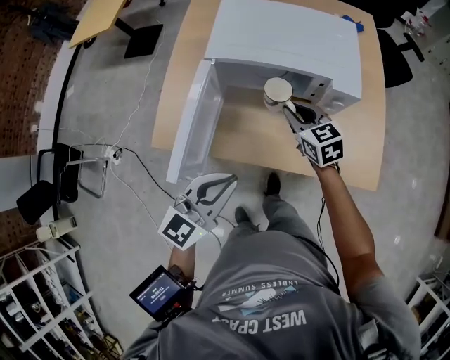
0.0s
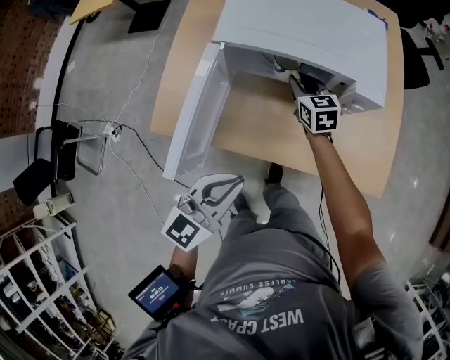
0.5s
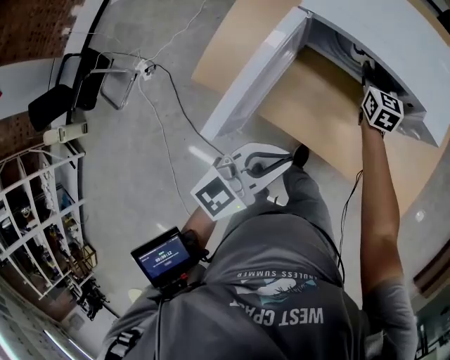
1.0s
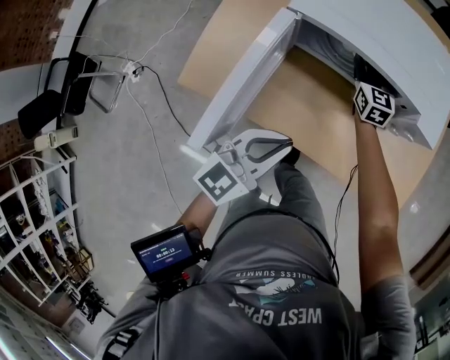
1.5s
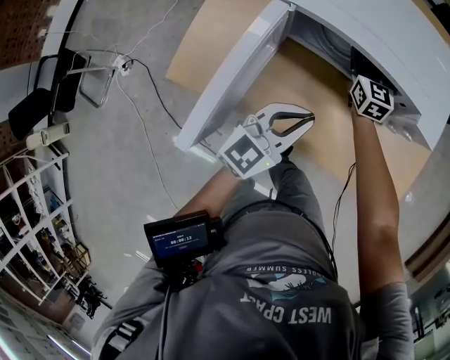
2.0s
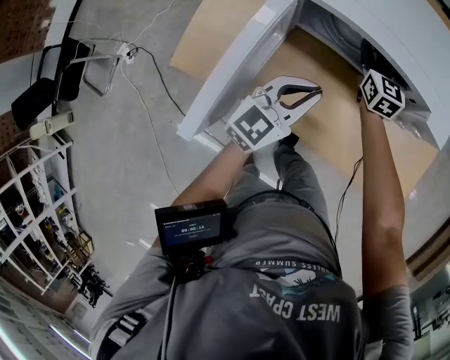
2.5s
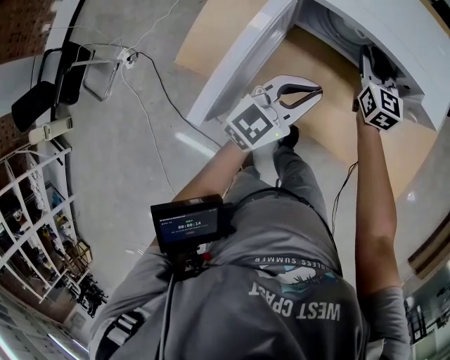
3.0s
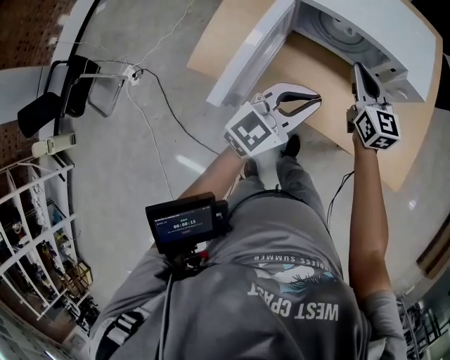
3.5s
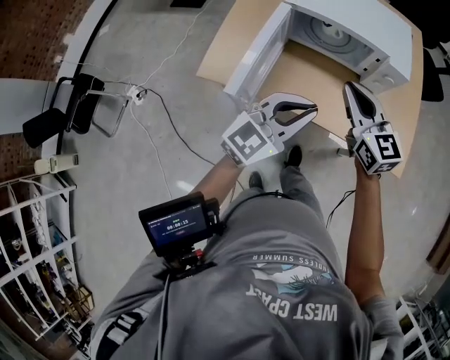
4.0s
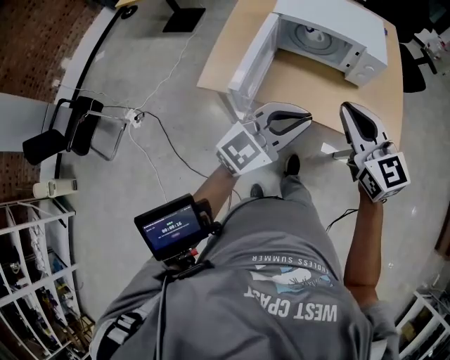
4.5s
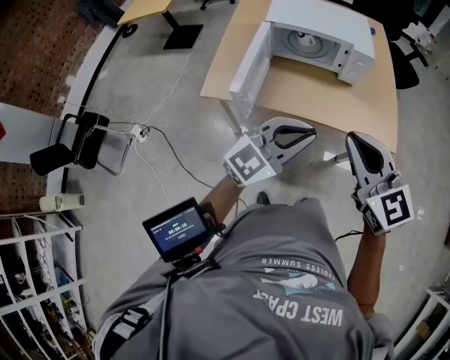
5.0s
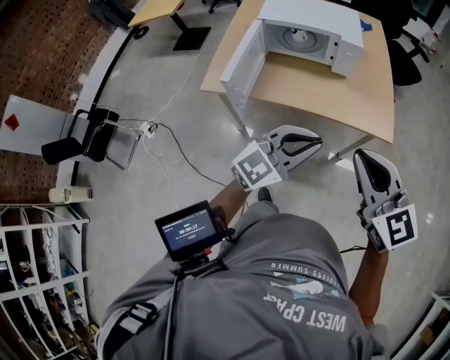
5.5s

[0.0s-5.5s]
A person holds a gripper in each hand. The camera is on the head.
0.0s to 2.0s: Both grippers travel together forward and downward, about 20 cm.
2.0s to 3.5s: The right gripper moves backward and upward, about 25 cm, while the left gripper is displaced upward and backward by roughly 15 cm.
3.5s to 5.5s: The right gripper travels backward and upward by some 50 cm. Meanwhile the left gripper travels backward, upward and to the right by roughly 35 cm.

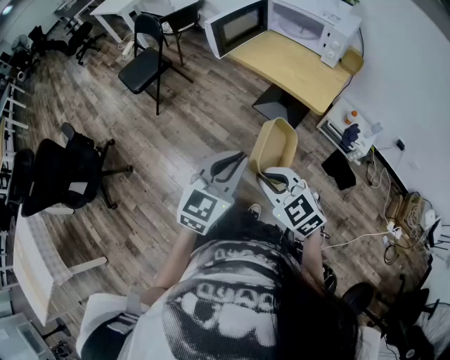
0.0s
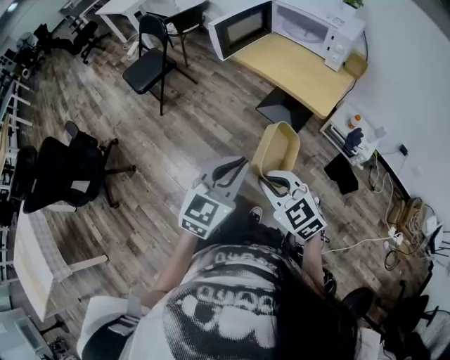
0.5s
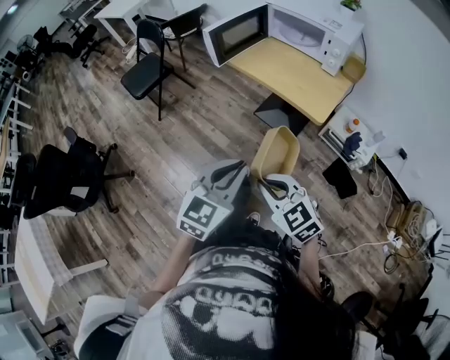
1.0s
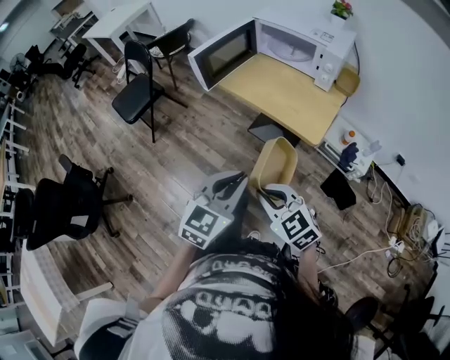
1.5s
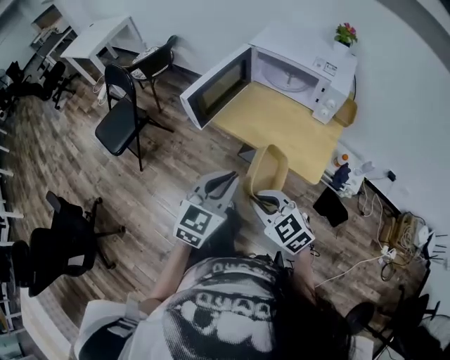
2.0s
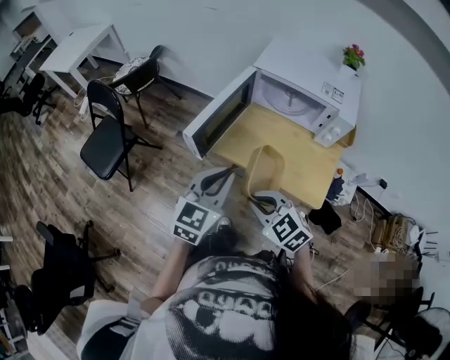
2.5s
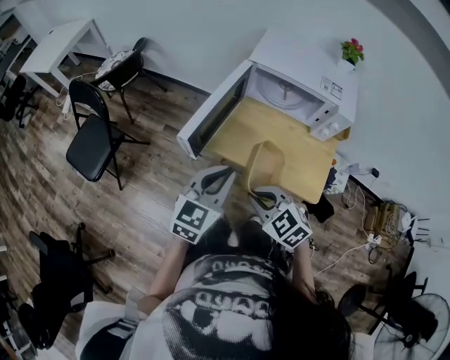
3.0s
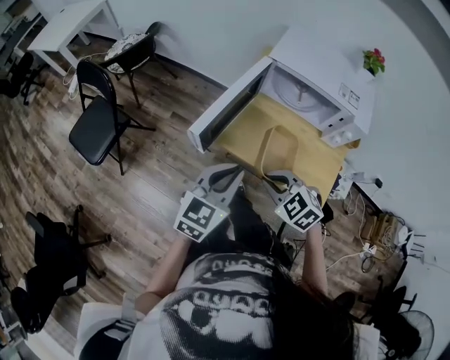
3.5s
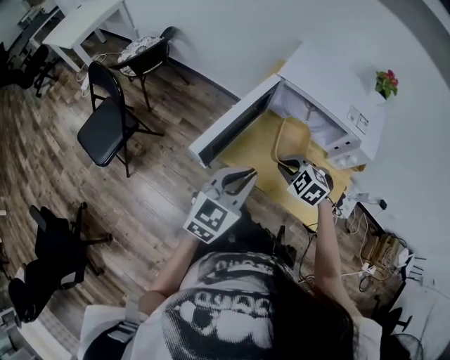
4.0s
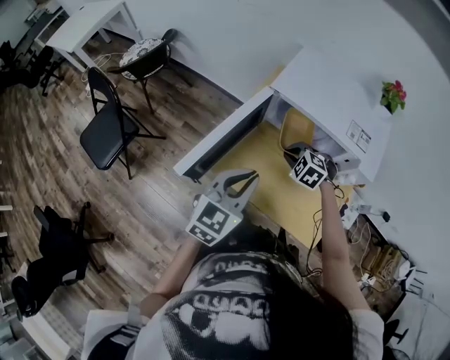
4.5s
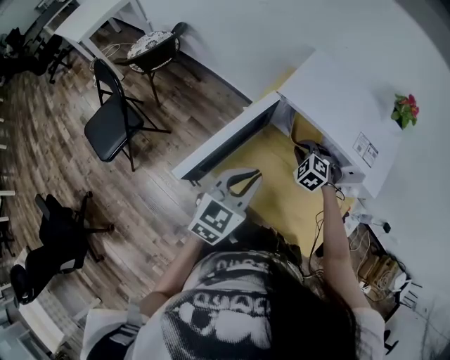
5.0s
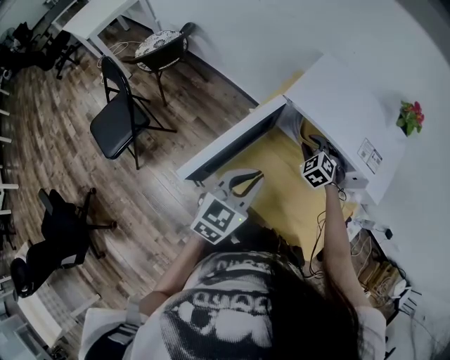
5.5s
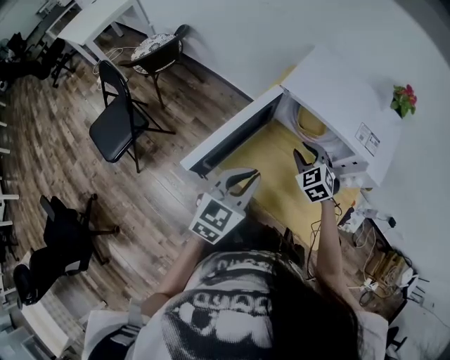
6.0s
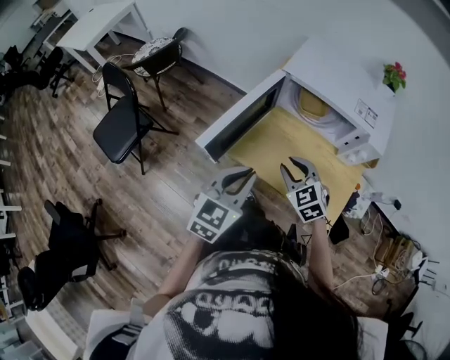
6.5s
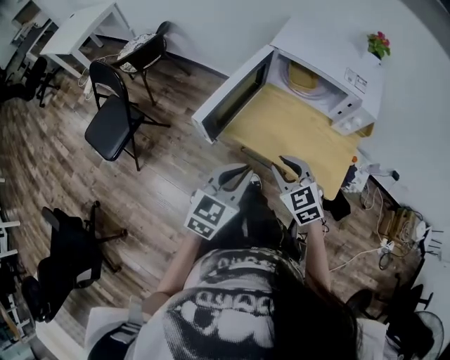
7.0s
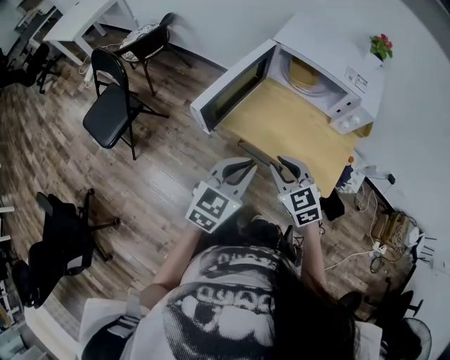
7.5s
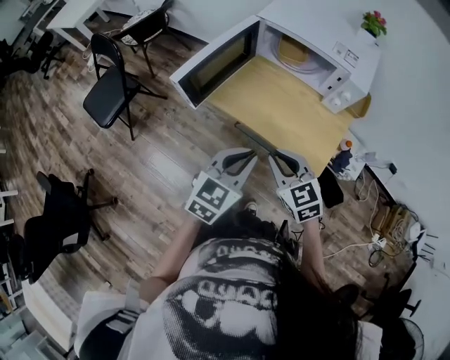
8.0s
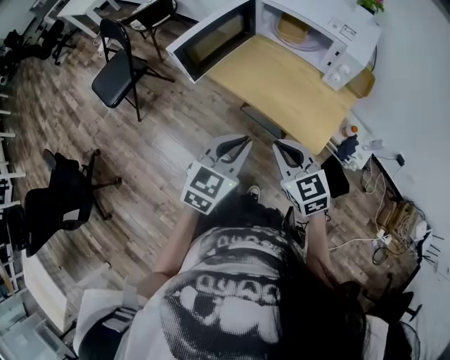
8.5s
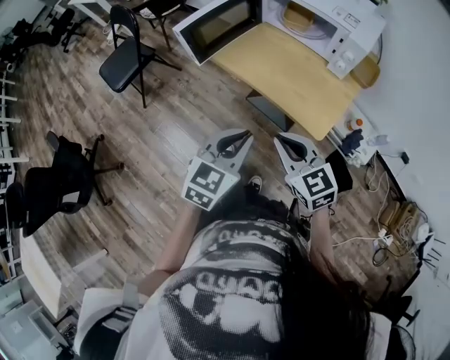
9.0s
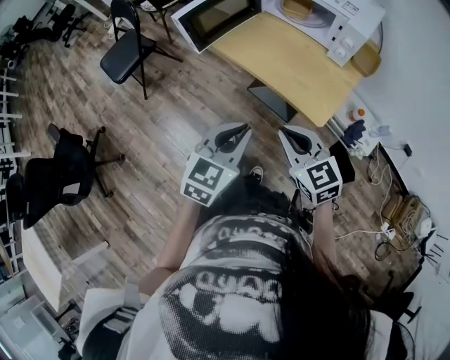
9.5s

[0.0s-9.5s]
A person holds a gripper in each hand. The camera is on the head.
0.0s to 2.0s: Both grippers move forward, approximately 30 cm.
2.0s to 4.0s: The grippers both shift forward by some 30 cm. The right gripper changes its angle by roughly 30 degrees.
4.0s to 5.5s: The right gripper moves forward, approximately 20 cm, and opens; the left gripper is displaced forward by approximately 10 cm.
5.5s to 7.5s: The right gripper heads backward, covering approximately 35 cm, and rotates roughly 40 degrees, while the left gripper shifts some 20 cm backward.
7.5s to 9.5s: Both grippers travel together backward and to the right, some 20 cm. The right gripper closes its fingers.

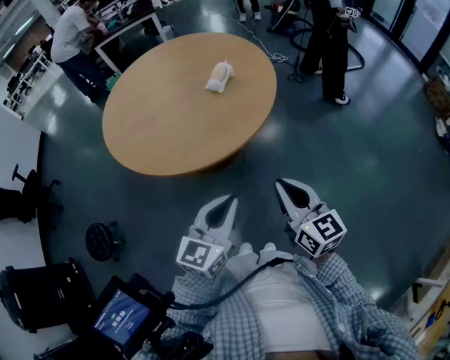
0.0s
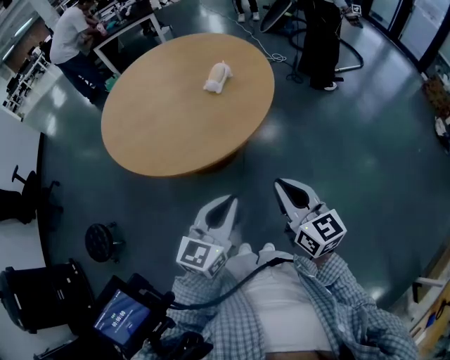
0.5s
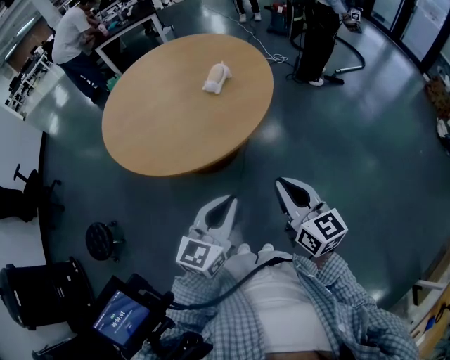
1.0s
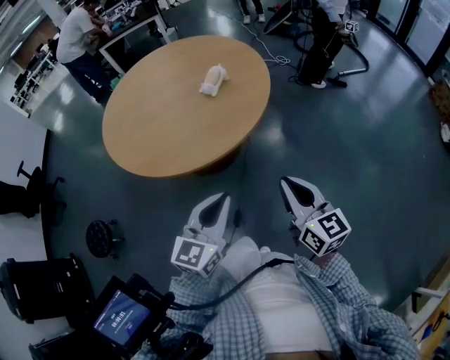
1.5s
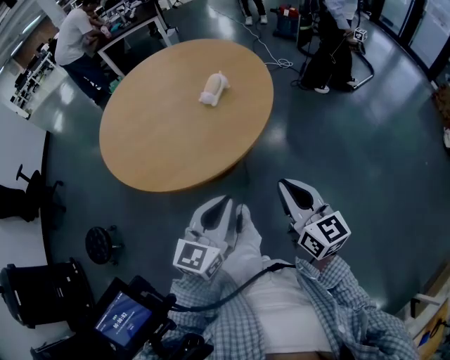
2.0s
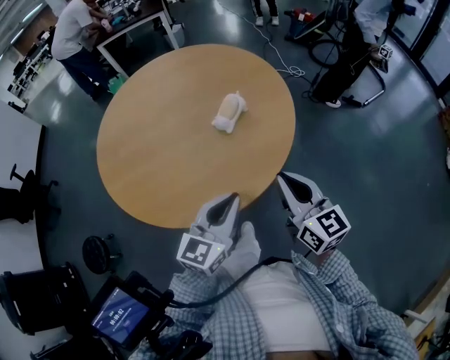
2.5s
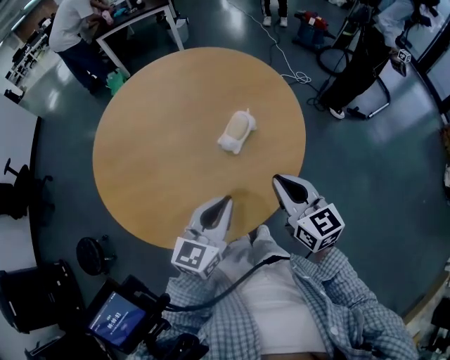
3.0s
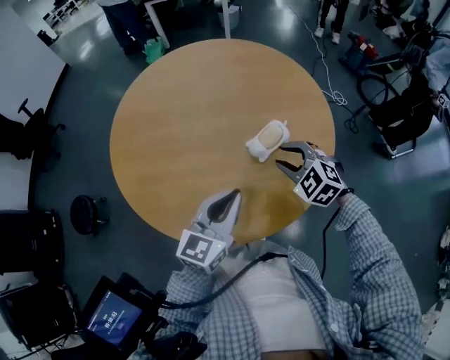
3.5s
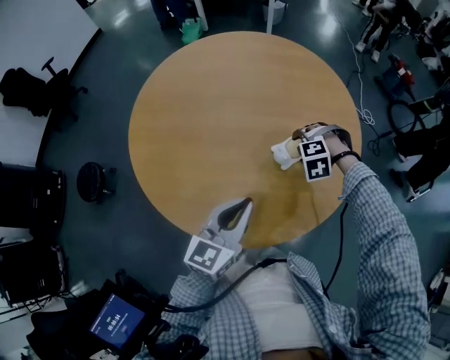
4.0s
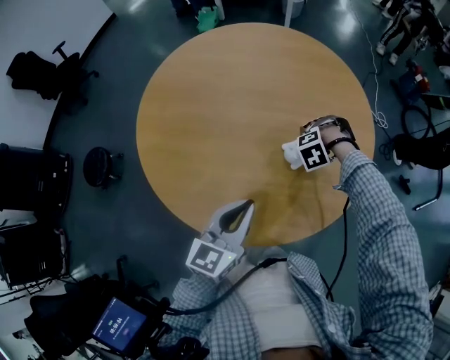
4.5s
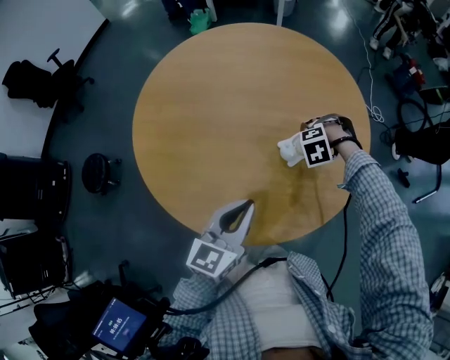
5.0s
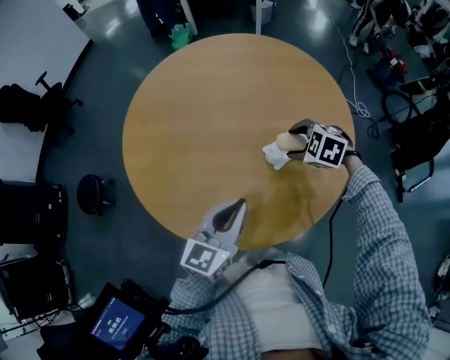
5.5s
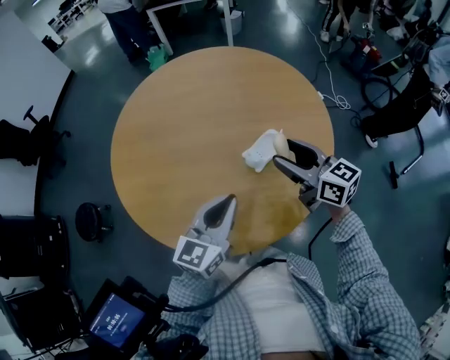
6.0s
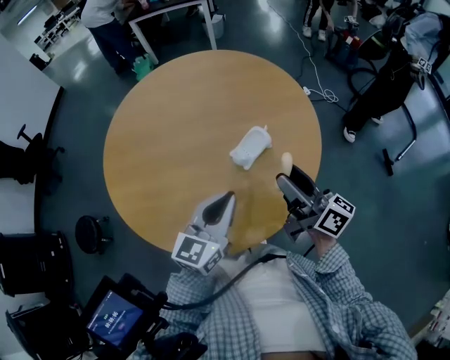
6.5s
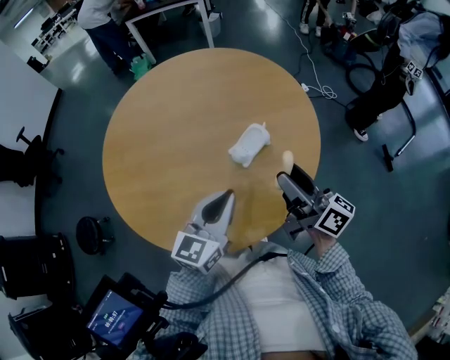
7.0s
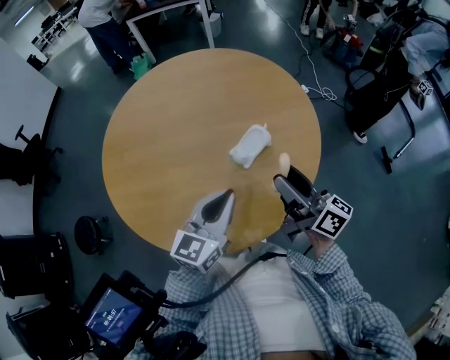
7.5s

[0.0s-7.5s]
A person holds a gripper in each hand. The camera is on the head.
0.0s to 2.0s: There are only small adjustments of the grippers.
2.0s to 4.0s: The right gripper moves some 50 cm, tips its fingers downward by roughly 70 degrees, and opens. The left gripper shifts by roughly 30 cm, and turns by some 30 degrees.
4.0s to 5.5s: The right gripper rotates some 40 degrees.
5.5s to 7.5s: The right gripper shifts approximately 20 cm upward and backward, and tilts its fingers roughly 70 degrees upward. The left gripper ends up about 5 cm from where it was.

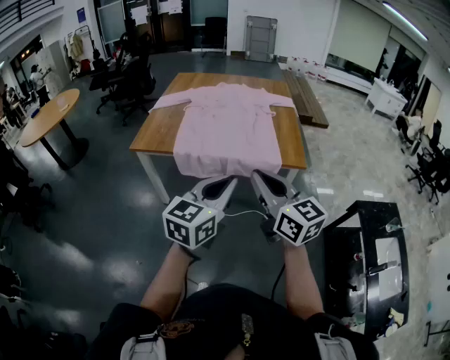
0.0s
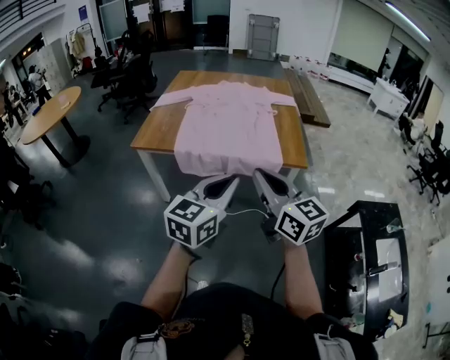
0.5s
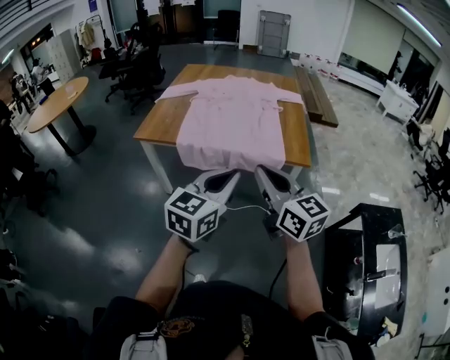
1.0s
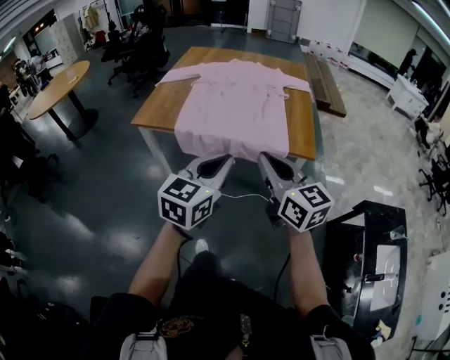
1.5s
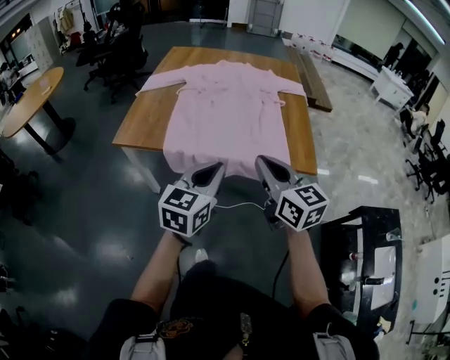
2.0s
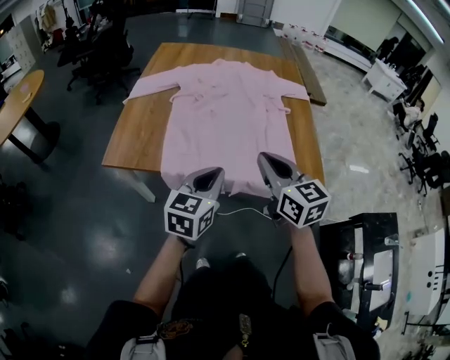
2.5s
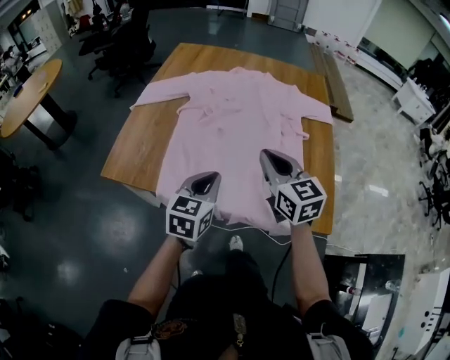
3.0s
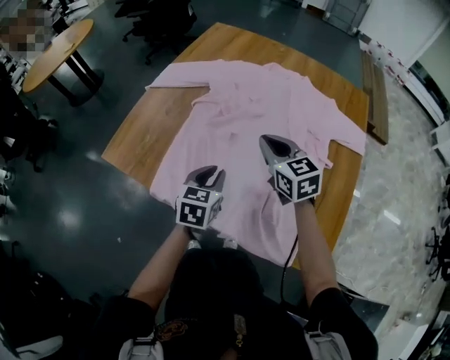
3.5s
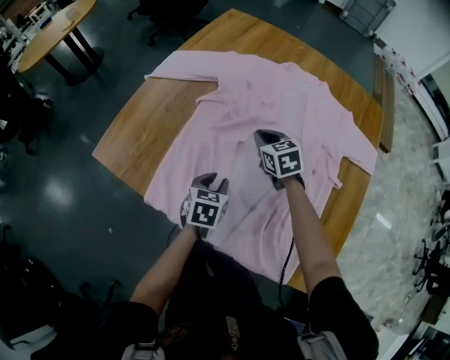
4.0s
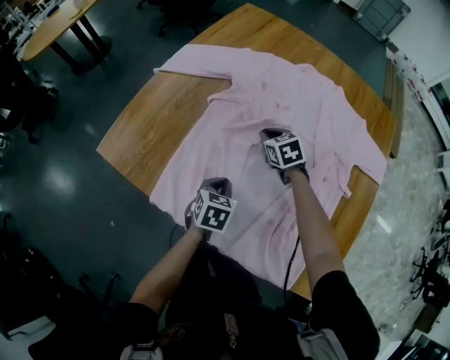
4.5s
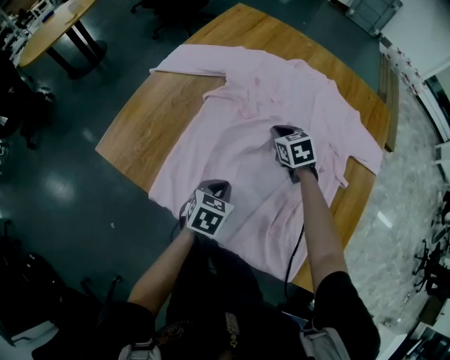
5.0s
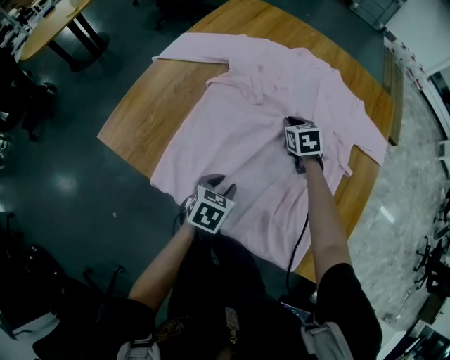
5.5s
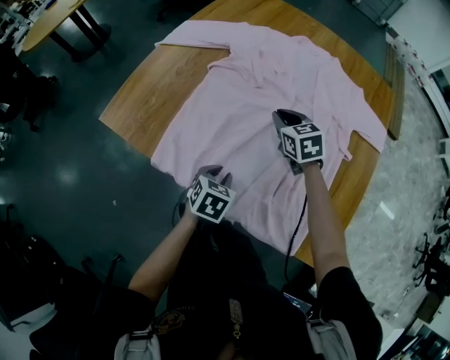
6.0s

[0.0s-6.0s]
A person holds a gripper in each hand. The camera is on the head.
0.0s to 2.0s: The right gripper moves forward, approximately 20 cm, while the left gripper is displaced forward and downward by about 20 cm.
2.0s to 4.0s: The left gripper shifts by about 50 cm, tilts its fingers about 30 degrees downward, and opens, while the right gripper shifts by some 60 cm, and tilts its fingers roughly 30 degrees downward.
4.0s to 6.0s: The left gripper is displaced backward by about 10 cm. Meanwhile the right gripper heads backward, covering some 5 cm, and moves some 10 cm to the right and comes back.
